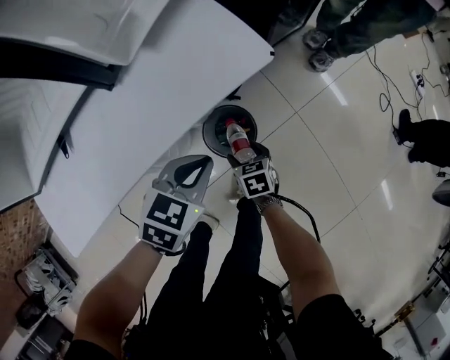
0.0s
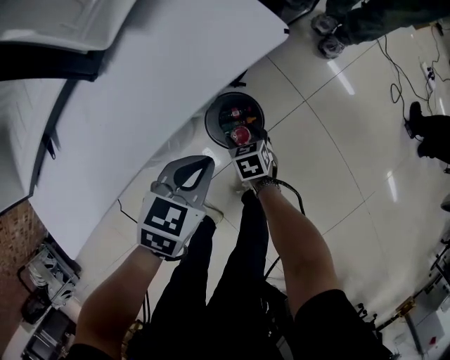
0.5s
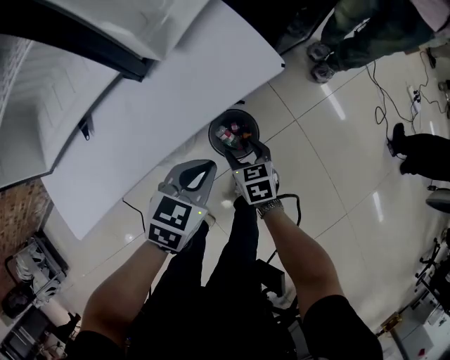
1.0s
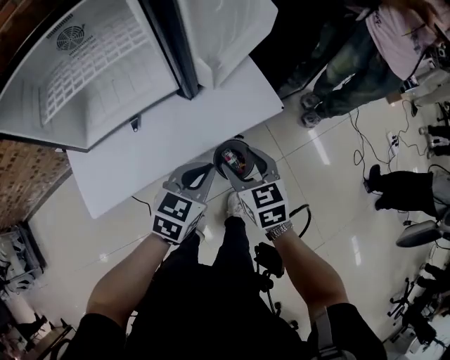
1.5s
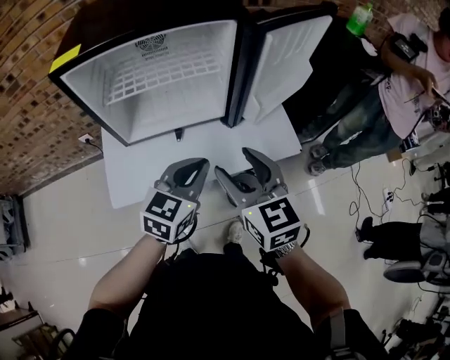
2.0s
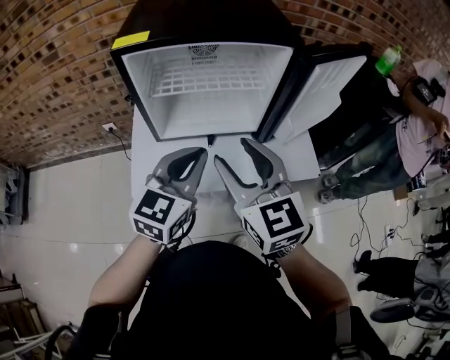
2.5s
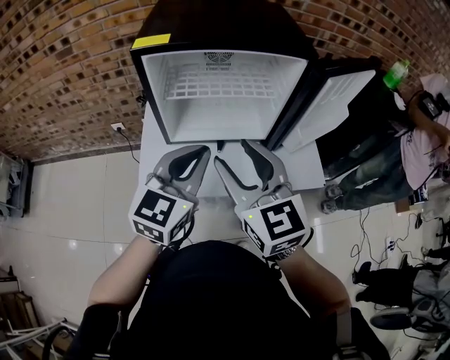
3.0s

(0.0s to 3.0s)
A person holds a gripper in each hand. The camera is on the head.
0.0s - 1.5s: The left gripper goes approximately 20 cm upward. The right gripper shifts approximately 35 cm upward, and turns by roughly 30 degrees.
1.5s - 3.0s: Both grippers travel together upward, approximately 25 cm. The left gripper swivels approximately 40 degrees. The right gripper turns by about 40 degrees.

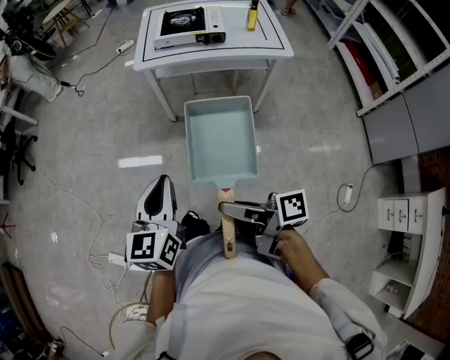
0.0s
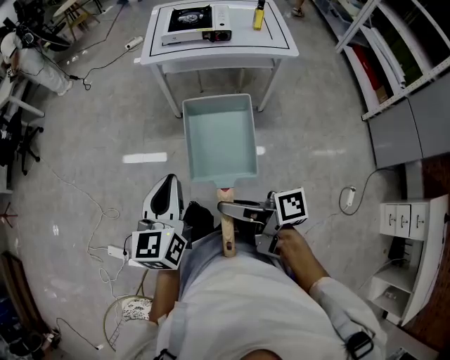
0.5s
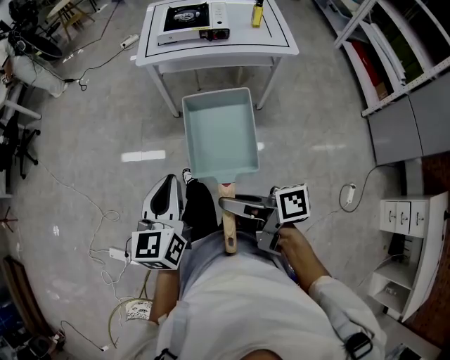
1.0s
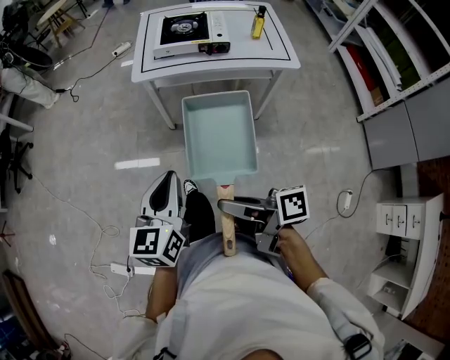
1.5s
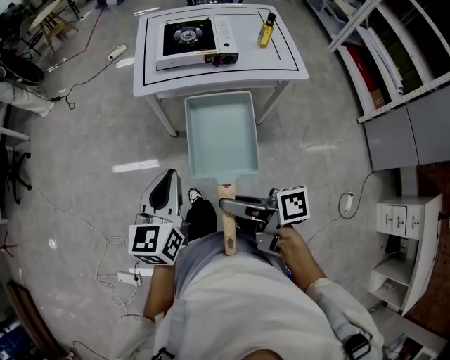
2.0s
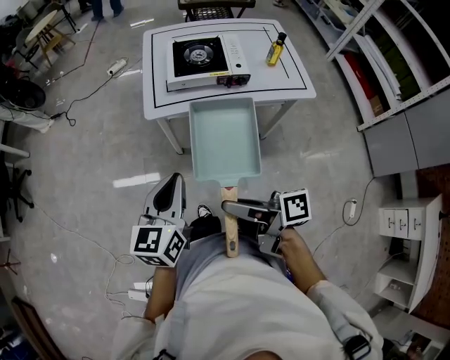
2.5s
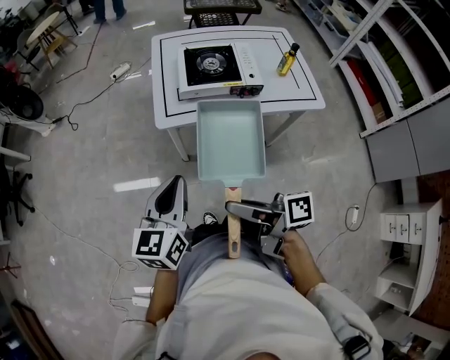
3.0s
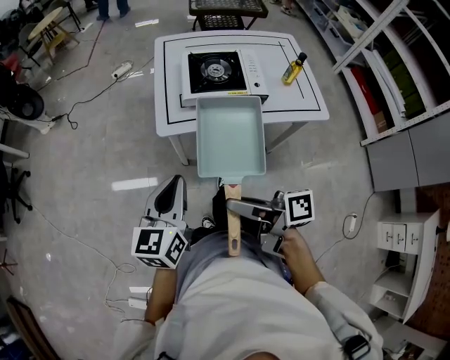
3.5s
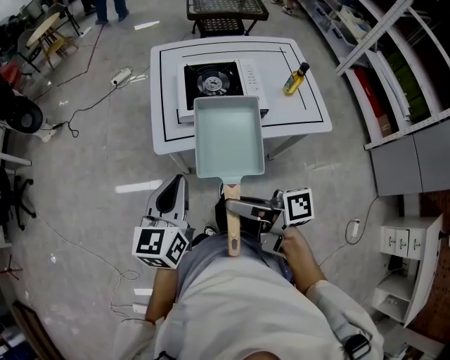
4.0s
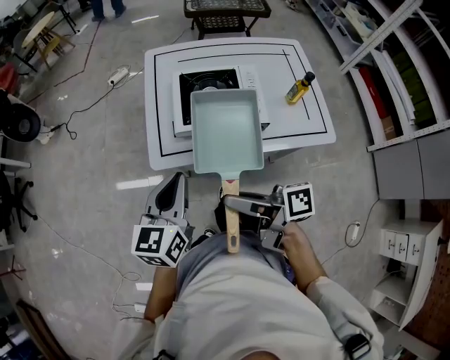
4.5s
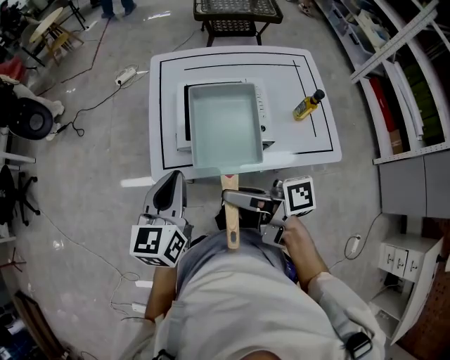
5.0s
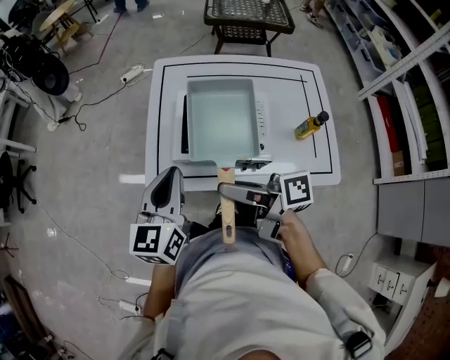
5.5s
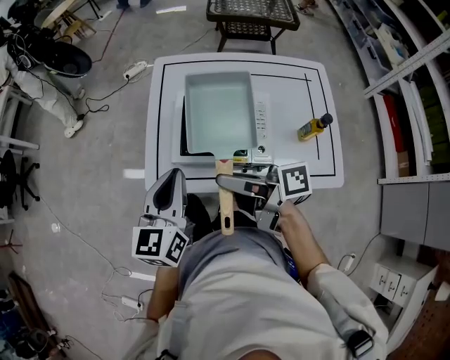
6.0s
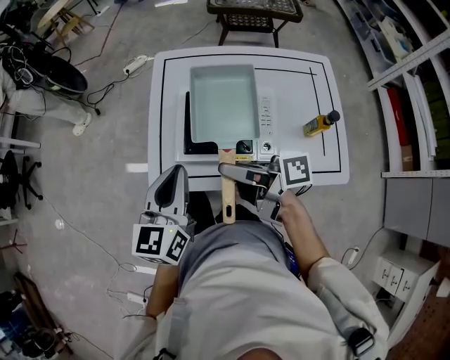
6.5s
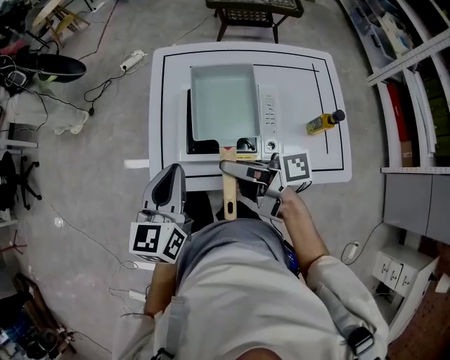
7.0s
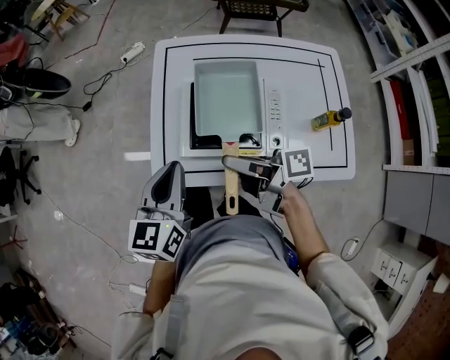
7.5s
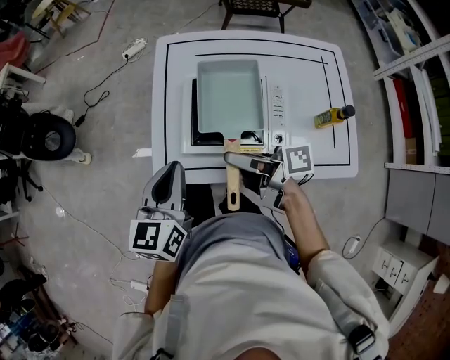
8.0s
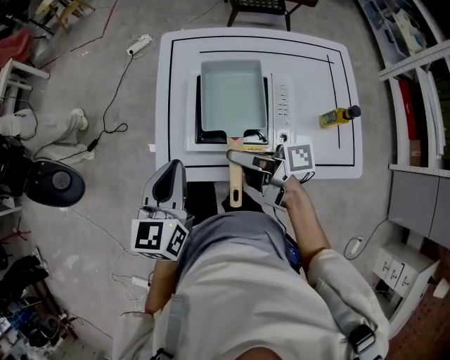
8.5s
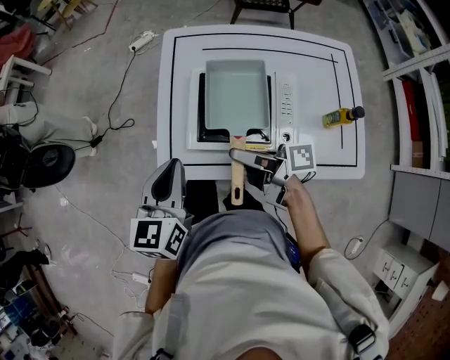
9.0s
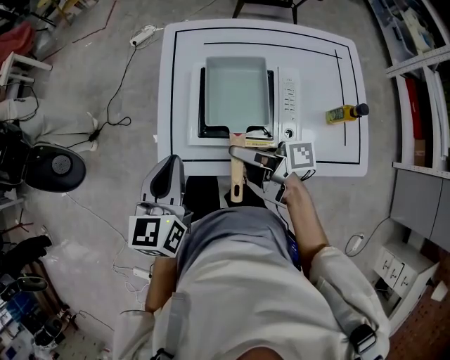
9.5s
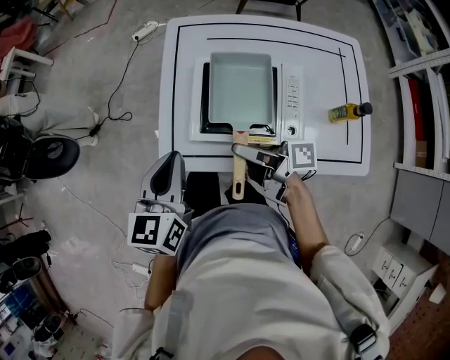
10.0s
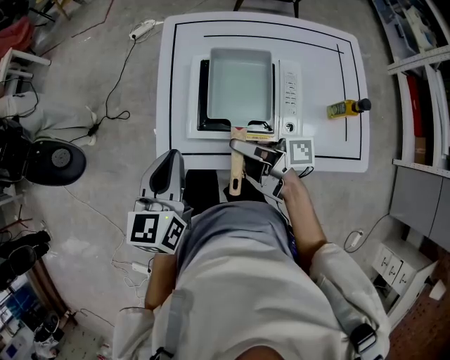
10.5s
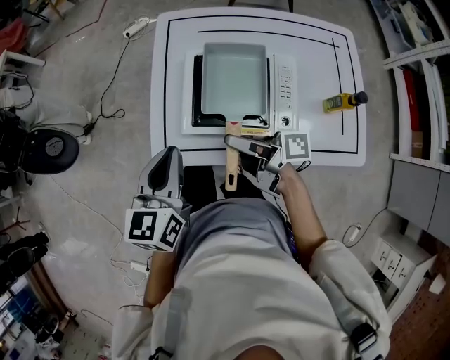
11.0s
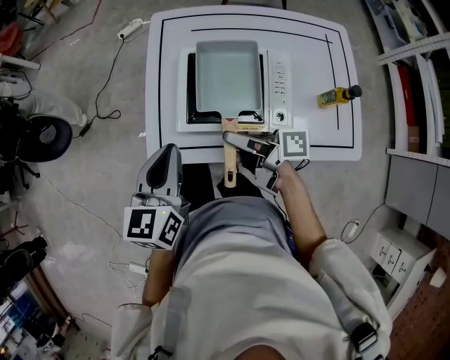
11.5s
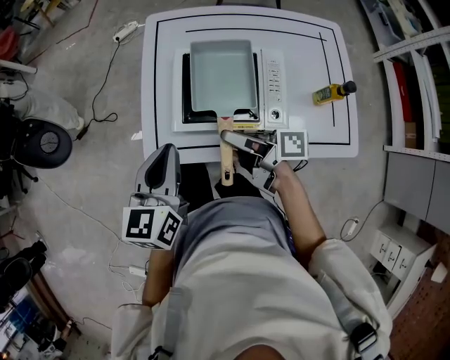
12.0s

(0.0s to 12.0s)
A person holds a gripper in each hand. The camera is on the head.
0.0s - 2.0s: The grippers both shift forward by about 20 cm.
2.0s - 4.0s: Both grippers move forward, some 25 cm.
4.0s - 6.0s: The two grippers go roughly 25 cm forward and to the right.
6.0s - 8.0s: The left gripper changes place by some 5 cm. Meanwhile the right gripper heads downward and forward, covering approximately 10 cm.
8.0s - 12.0s: There are only small adjustments of the grippers.

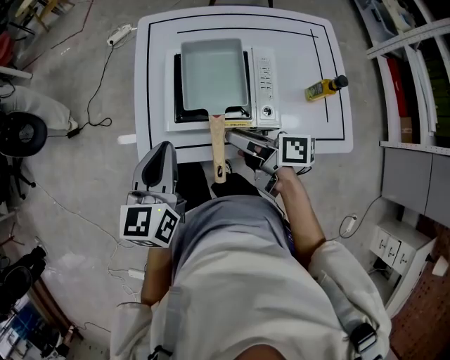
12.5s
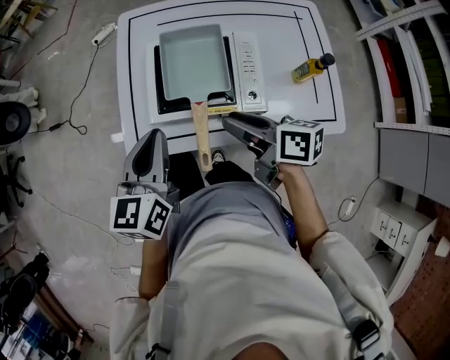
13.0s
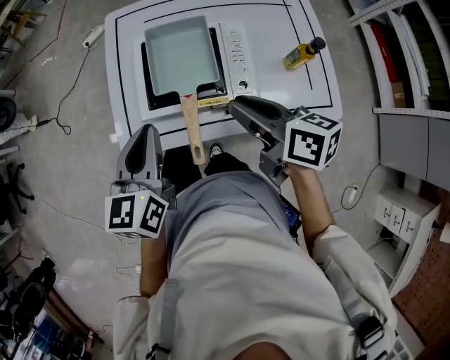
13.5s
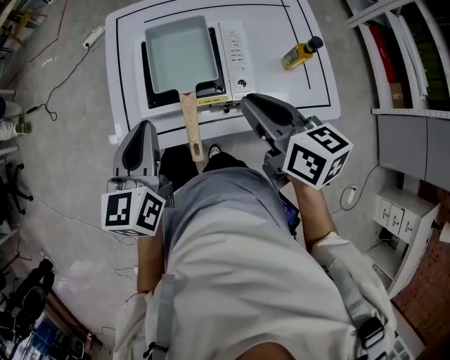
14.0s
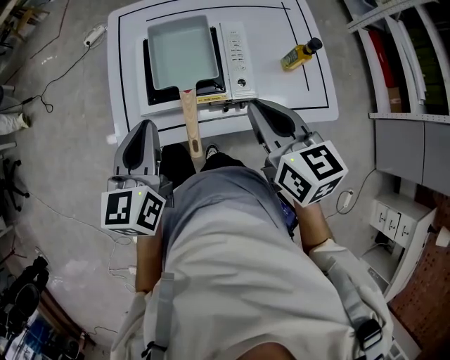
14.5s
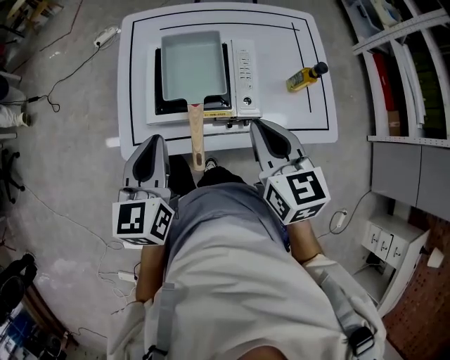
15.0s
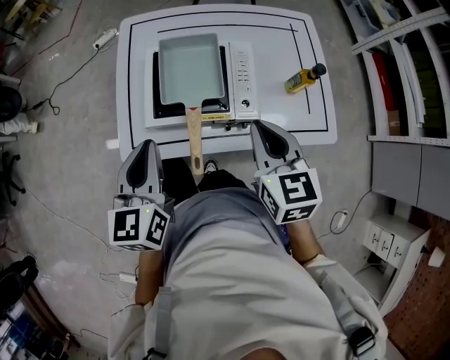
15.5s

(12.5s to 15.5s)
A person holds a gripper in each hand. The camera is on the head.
12.5s - 14.0s: The right gripper moves upward and to the right, roughly 15 cm, turns by approximately 40 degrees, and closes up.
14.0s - 15.5s: The right gripper rotates approximately 30 degrees.

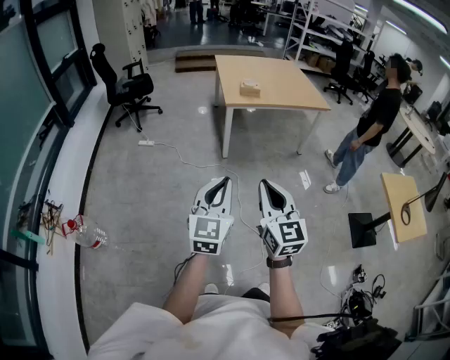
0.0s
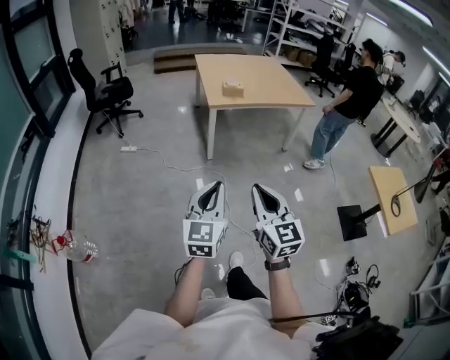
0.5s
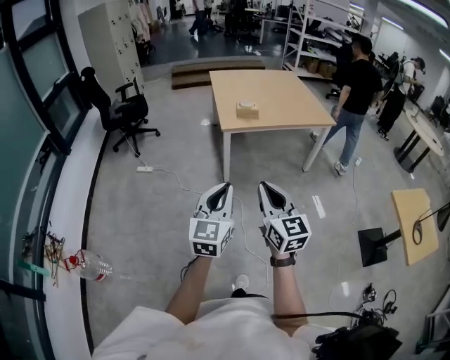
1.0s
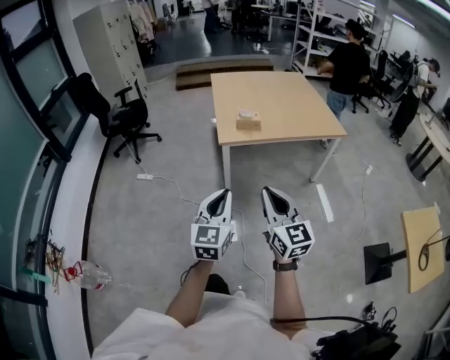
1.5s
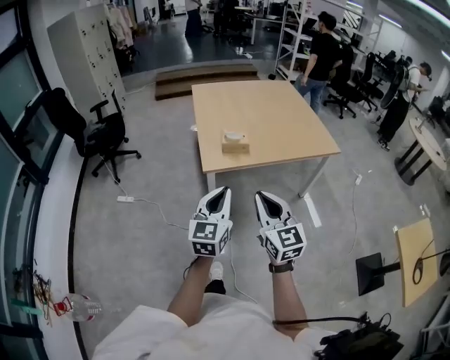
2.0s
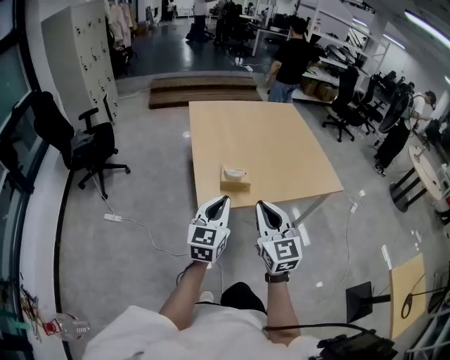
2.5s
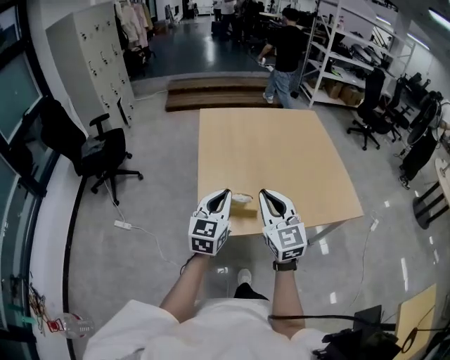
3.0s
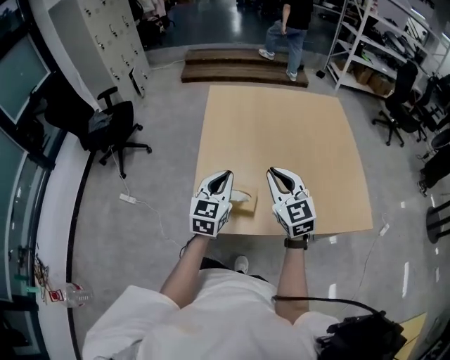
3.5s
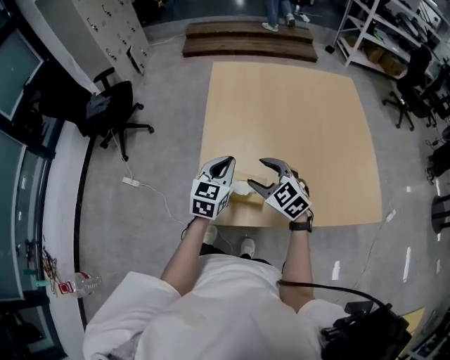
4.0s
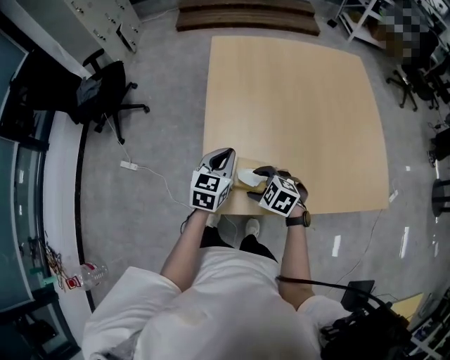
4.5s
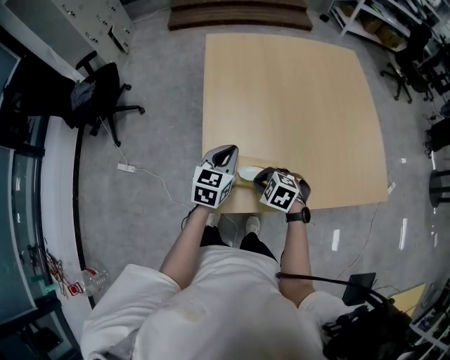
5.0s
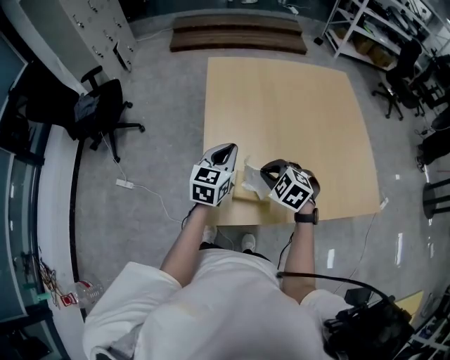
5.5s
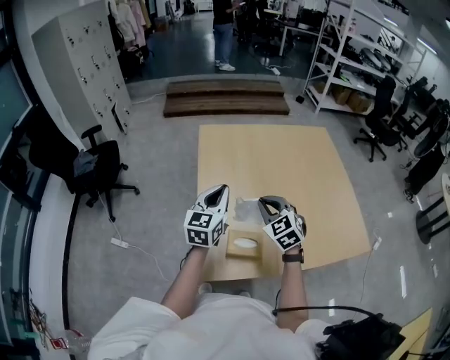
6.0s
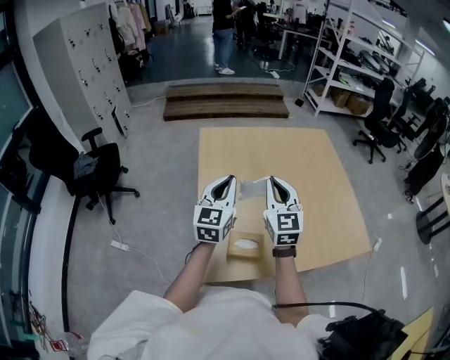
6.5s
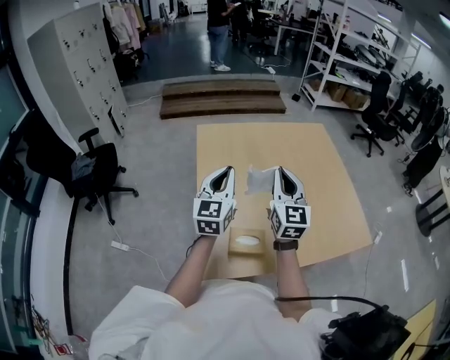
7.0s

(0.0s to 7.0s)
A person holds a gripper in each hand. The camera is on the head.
0.0s - 2.0s: Both grippers are carried forward, about 60 cm.
2.0s - 3.5s: The two grippers travel together, forward, some 60 cm. The right gripper turns by about 20 degrees.
3.5s - 5.0s: The left gripper travels downward and forward by about 15 cm, while the right gripper goes about 25 cm downward, angles its fingers downward, by about 50 degrees, and opens, then closes once more.
5.0s - 7.0s: The left gripper moves upward, about 20 cm, and rotates about 30 degrees, while the right gripper moves upward, roughly 35 cm, and tips its fingers upward by about 70 degrees.

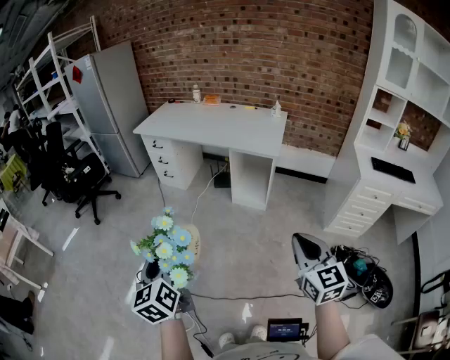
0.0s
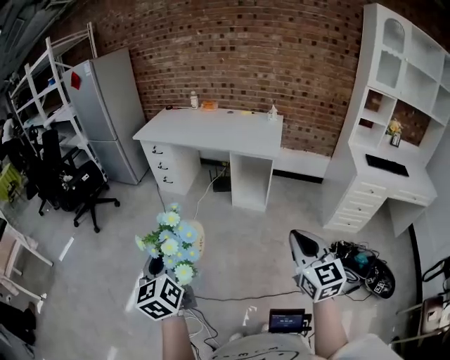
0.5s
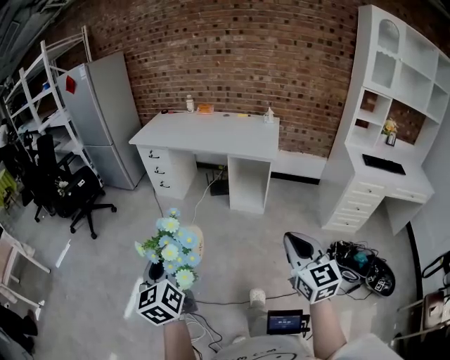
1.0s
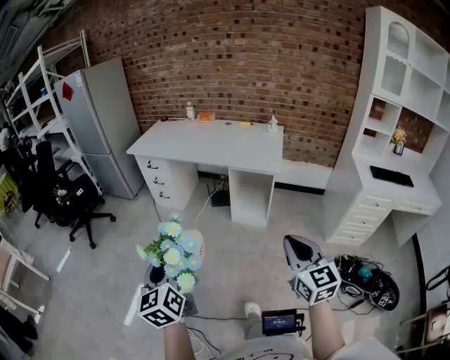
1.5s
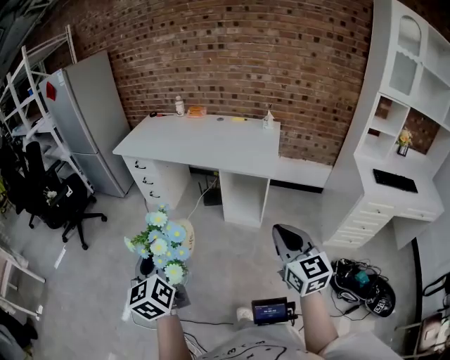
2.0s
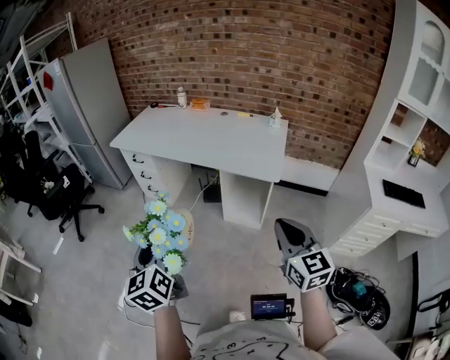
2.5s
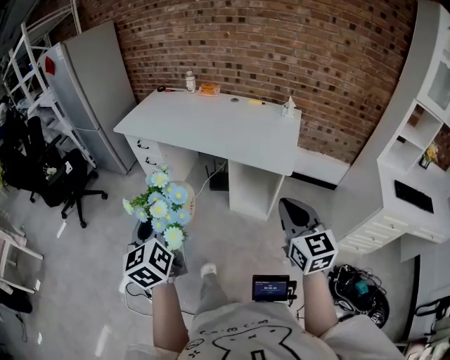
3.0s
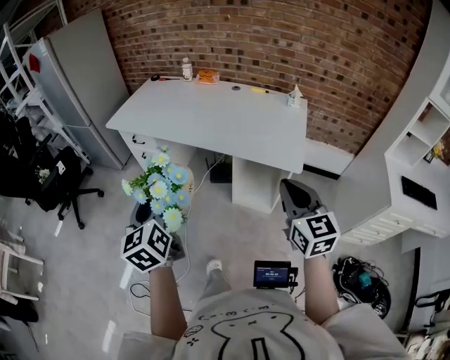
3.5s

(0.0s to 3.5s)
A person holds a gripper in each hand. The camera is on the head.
0.0s - 2.0s: Both grippers travel together forward, some 20 cm.
2.0s - 3.5s: Both grippers travel together forward, approximately 25 cm.
